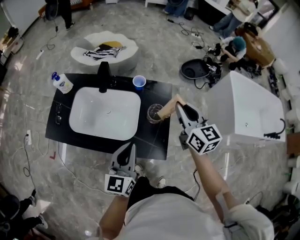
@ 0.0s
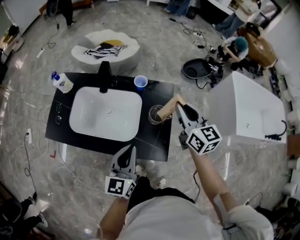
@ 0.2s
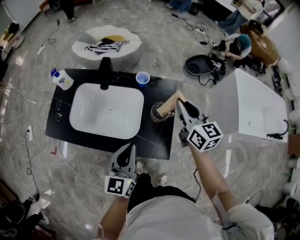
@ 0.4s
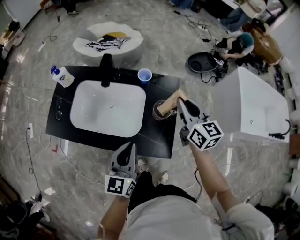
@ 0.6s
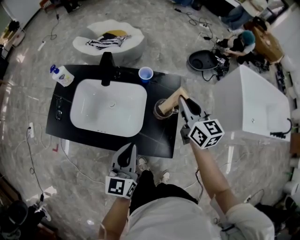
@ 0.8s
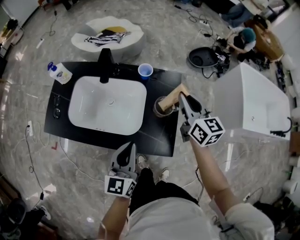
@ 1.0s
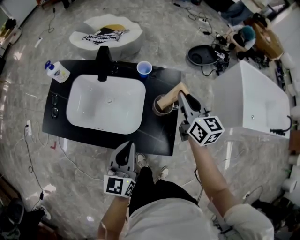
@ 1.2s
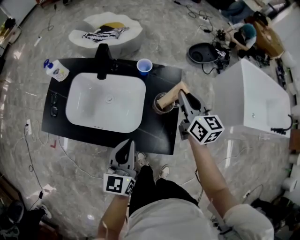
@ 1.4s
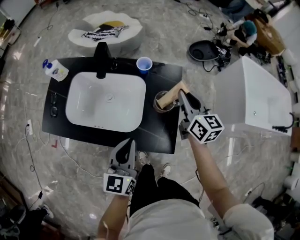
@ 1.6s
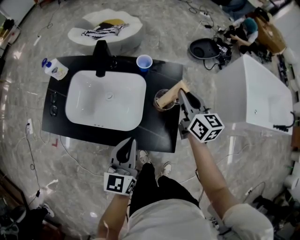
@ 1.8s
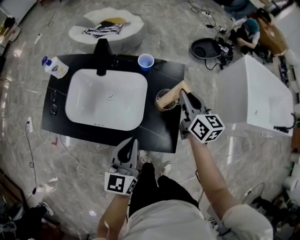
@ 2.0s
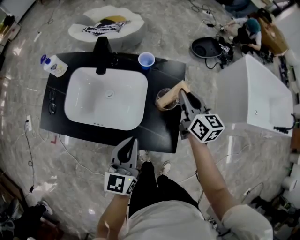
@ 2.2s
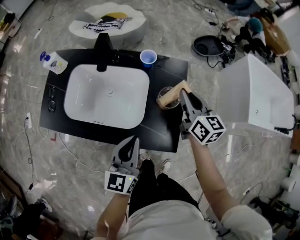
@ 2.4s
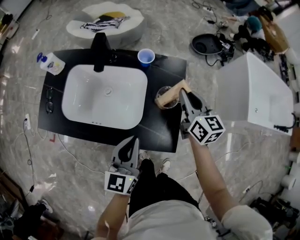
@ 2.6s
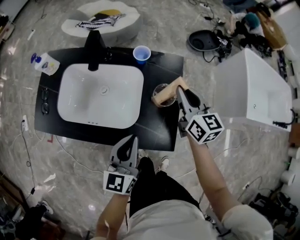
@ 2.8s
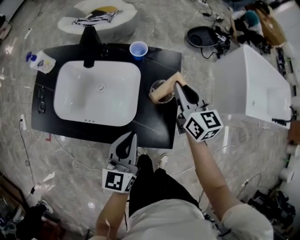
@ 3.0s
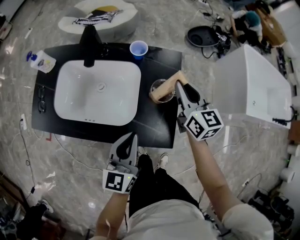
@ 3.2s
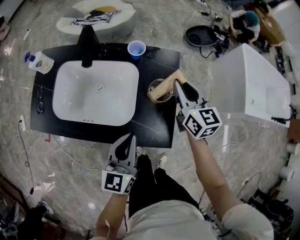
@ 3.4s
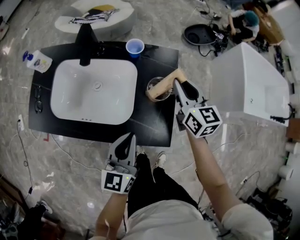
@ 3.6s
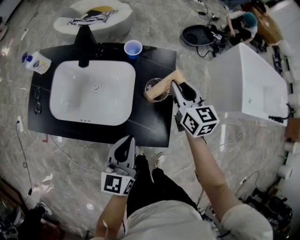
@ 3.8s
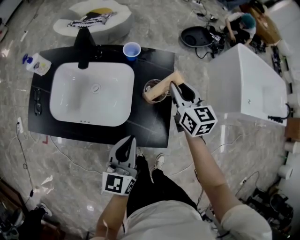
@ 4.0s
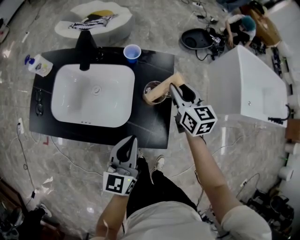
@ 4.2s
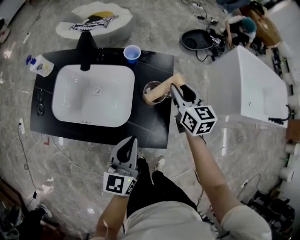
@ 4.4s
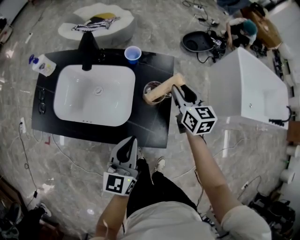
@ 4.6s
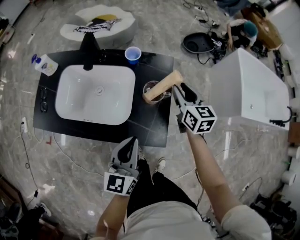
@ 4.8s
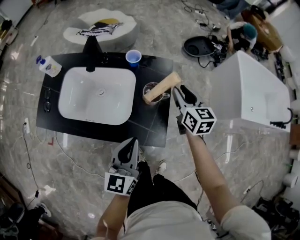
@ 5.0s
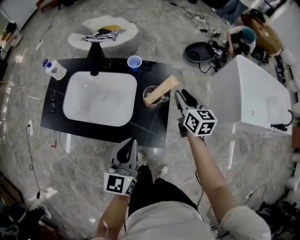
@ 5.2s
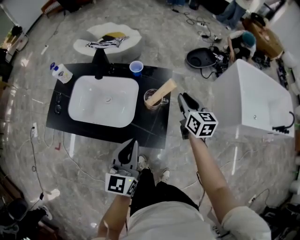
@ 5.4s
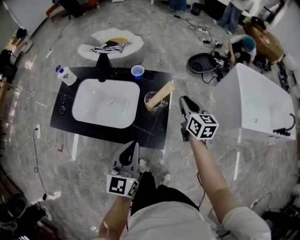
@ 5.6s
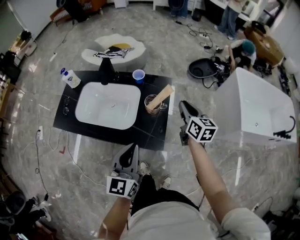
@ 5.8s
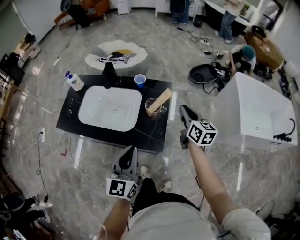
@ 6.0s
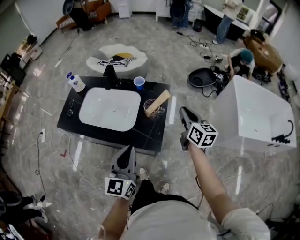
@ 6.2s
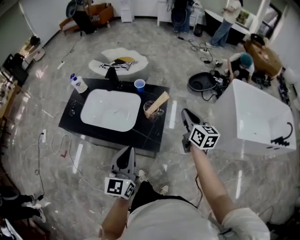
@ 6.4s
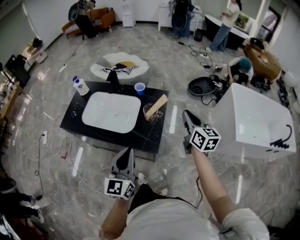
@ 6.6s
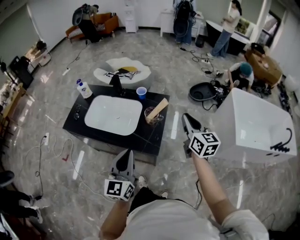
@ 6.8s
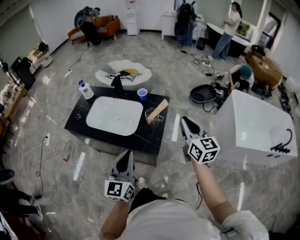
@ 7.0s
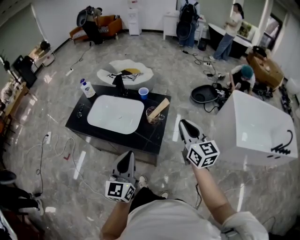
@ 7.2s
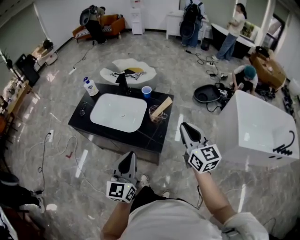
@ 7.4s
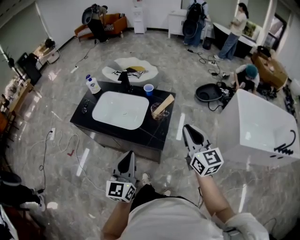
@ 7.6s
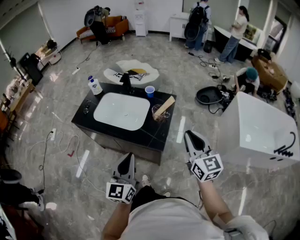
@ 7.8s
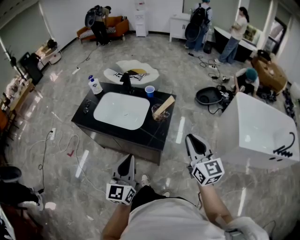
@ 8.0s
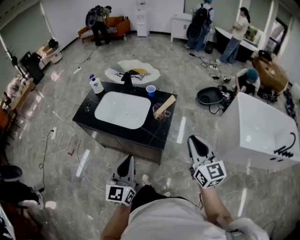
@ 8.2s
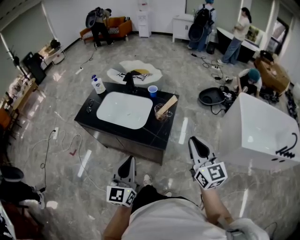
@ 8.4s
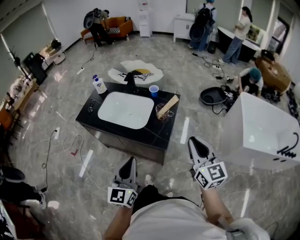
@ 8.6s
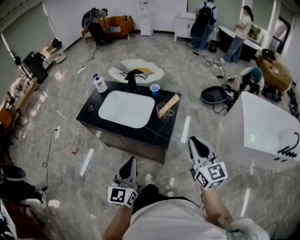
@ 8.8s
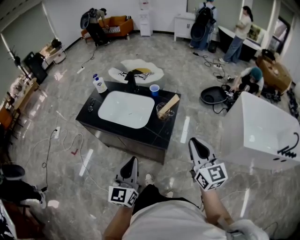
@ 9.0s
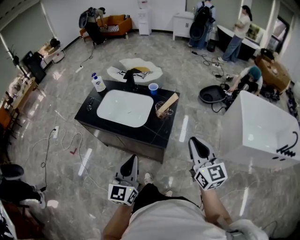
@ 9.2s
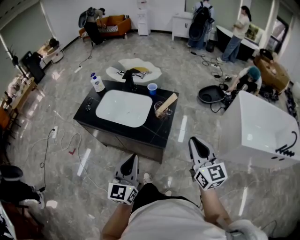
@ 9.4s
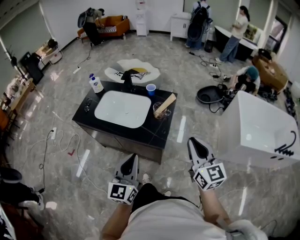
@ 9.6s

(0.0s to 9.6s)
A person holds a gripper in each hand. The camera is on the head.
0.0s - 1.6s: The right gripper shifts some 10 cm downward. Meanwhile the left gripper moves some 5 cm.
1.6s - 3.2s: The grippers stay close to where they were, moving slightly.
3.2s - 4.8s: The right gripper opens up.
4.8s - 6.4s: The right gripper heads upward, backward and to the right, covering approximately 15 cm, and closes; the left gripper heads upward and backward, covering roughly 15 cm.
6.4s - 8.0s: The right gripper moves backward and upward, roughly 20 cm, and swivels roughly 20 degrees. Meanwhile the left gripper moves backward, approximately 10 cm.
8.0s - 9.6s: The grippers move only a little.

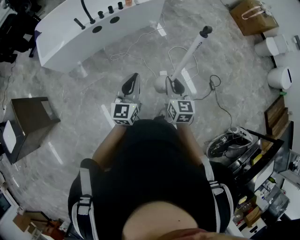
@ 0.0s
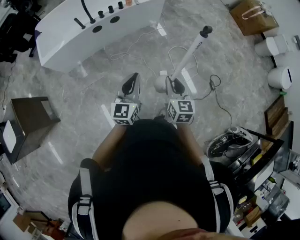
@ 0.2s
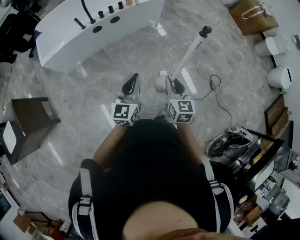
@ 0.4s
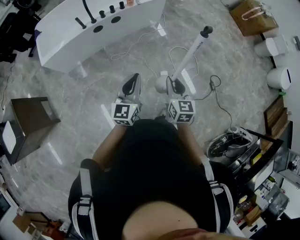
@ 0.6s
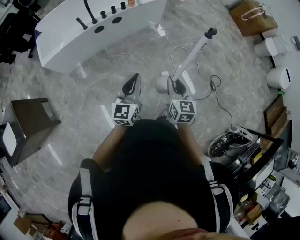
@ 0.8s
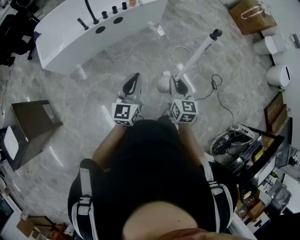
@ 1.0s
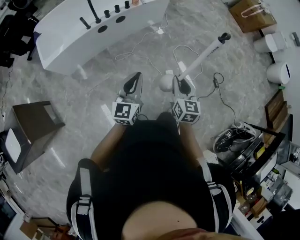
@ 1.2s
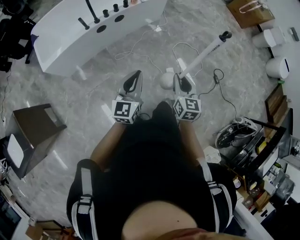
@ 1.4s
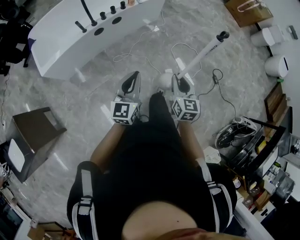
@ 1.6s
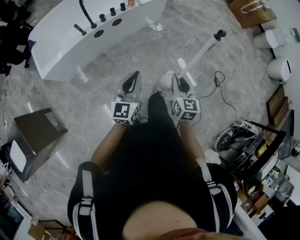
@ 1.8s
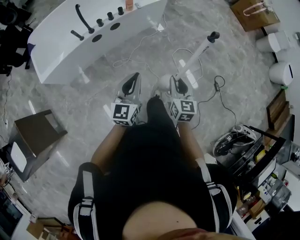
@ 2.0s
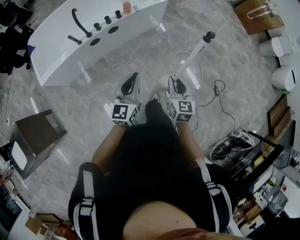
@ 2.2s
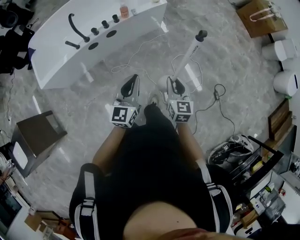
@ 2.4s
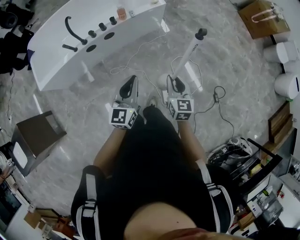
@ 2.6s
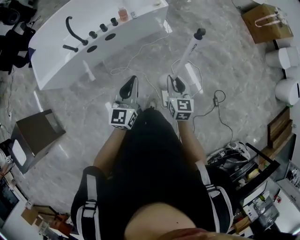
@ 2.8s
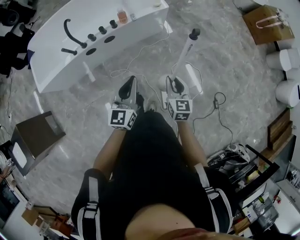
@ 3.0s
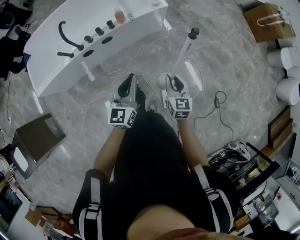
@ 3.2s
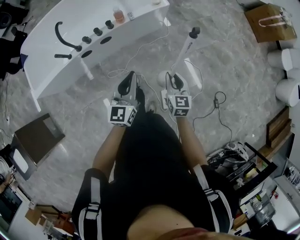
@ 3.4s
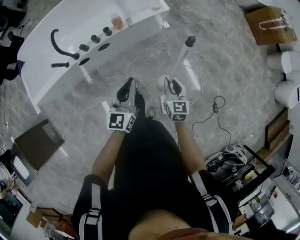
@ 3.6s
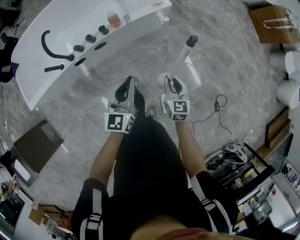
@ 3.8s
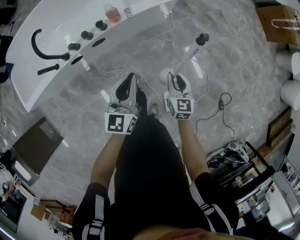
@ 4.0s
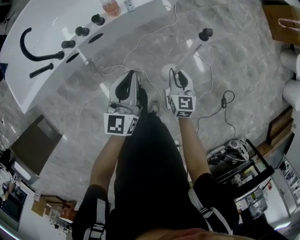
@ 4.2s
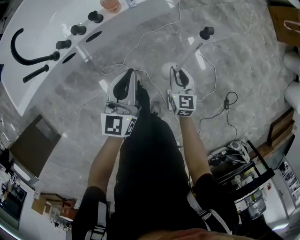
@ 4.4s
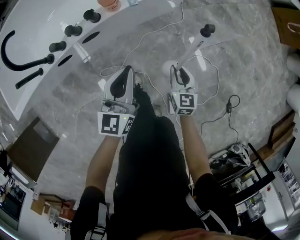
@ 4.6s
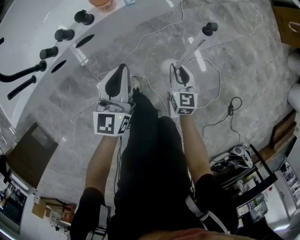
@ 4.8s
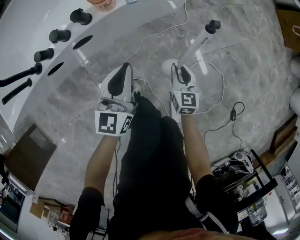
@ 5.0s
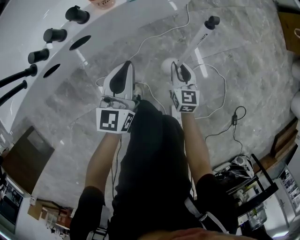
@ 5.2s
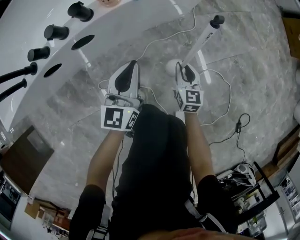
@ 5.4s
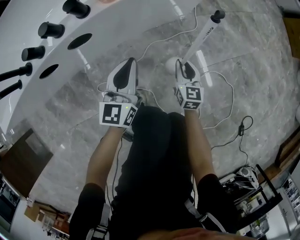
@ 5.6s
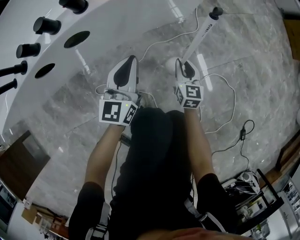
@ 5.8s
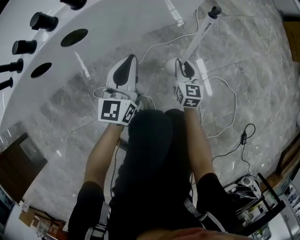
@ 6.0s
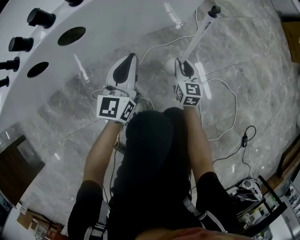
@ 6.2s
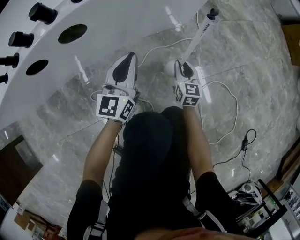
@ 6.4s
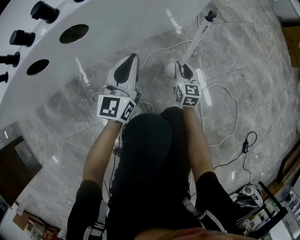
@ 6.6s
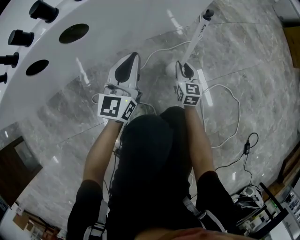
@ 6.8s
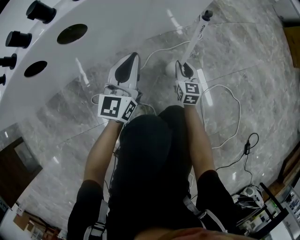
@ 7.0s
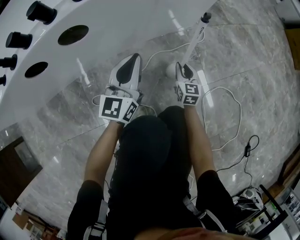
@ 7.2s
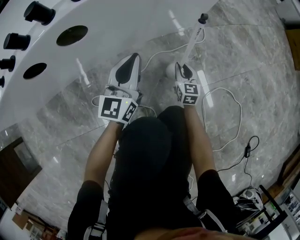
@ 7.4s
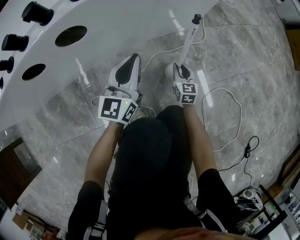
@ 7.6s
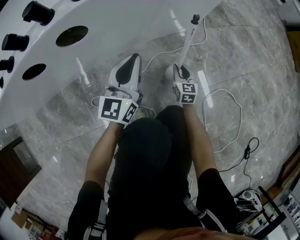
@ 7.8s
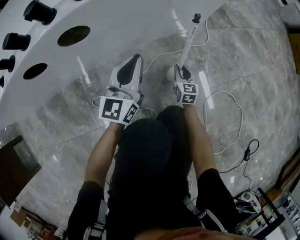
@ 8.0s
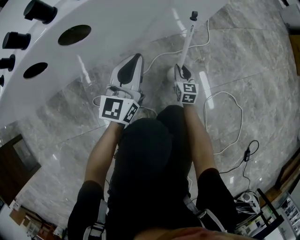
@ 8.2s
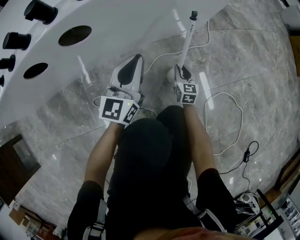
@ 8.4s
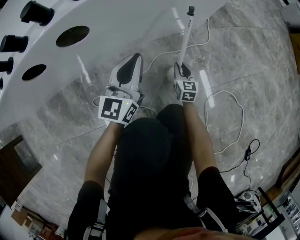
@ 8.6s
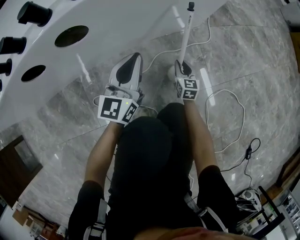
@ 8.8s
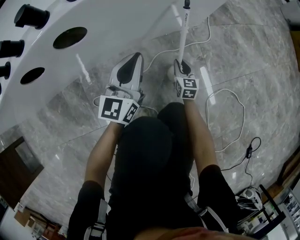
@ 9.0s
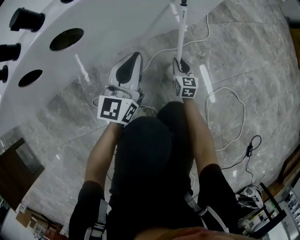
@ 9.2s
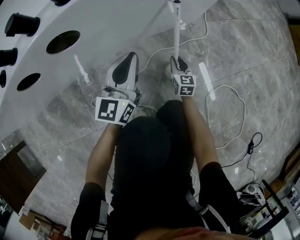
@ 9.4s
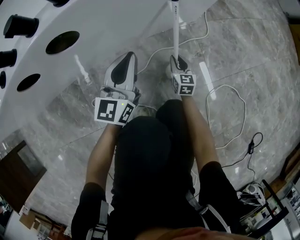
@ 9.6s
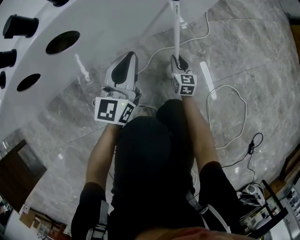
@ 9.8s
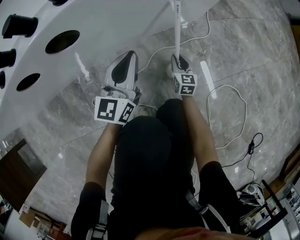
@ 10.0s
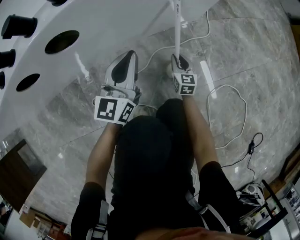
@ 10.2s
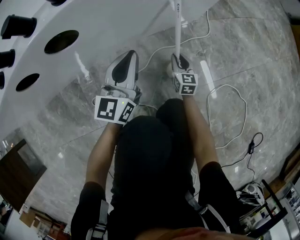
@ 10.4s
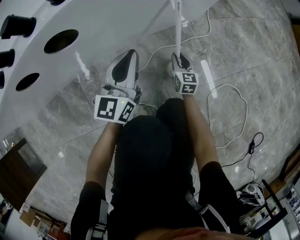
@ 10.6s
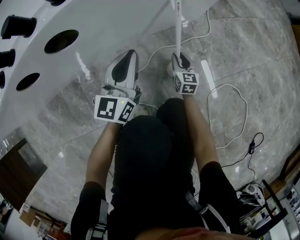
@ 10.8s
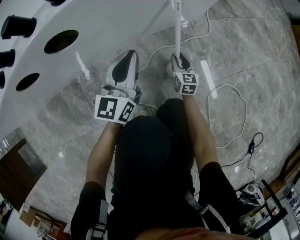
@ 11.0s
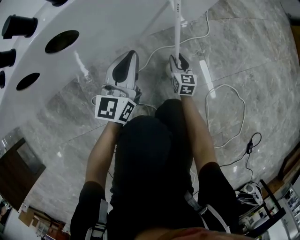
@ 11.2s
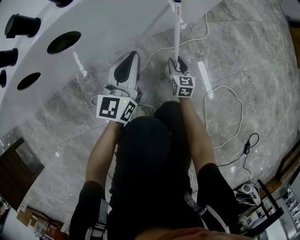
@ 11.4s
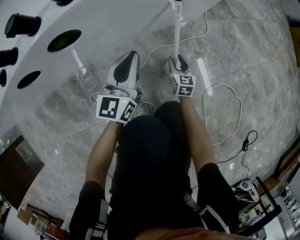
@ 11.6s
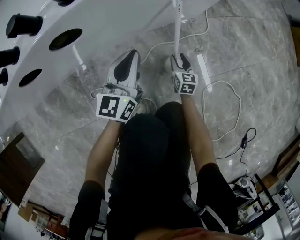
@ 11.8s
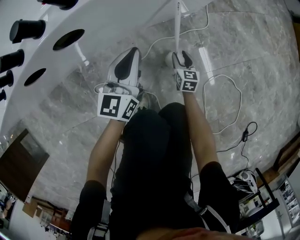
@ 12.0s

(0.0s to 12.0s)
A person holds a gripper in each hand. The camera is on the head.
0.0s - 1.6s: The right gripper travels to the left by approximately 10 cm, while the left gripper moves to the left and forward, about 15 cm.
1.6s - 3.0s: The left gripper is displaced forward and to the right by roughly 30 cm; the right gripper goes some 30 cm forward.
3.0s - 4.4s: The left gripper heads forward and downward, covering approximately 35 cm; the right gripper moves downward and forward, some 40 cm.
4.4s - 6.0s: Both grippers move downward, about 30 cm.
6.0s - 7.6s: The right gripper shifts roughly 15 cm downward. The left gripper travels downward by roughly 5 cm.
7.6s - 10.4s: The grippers stay close to where they were, moving slightly.
10.4s - 12.0s: The right gripper opens its fingers.

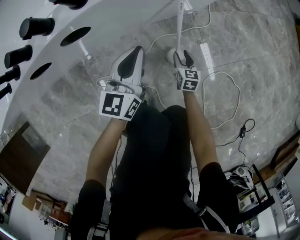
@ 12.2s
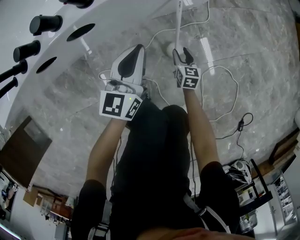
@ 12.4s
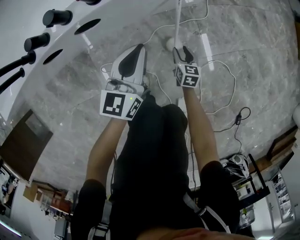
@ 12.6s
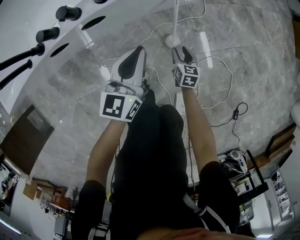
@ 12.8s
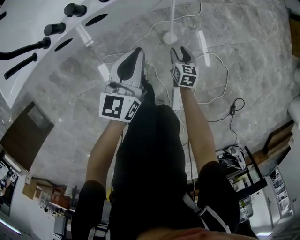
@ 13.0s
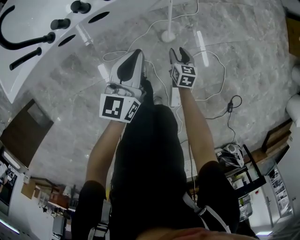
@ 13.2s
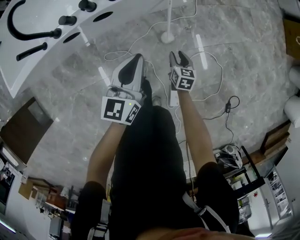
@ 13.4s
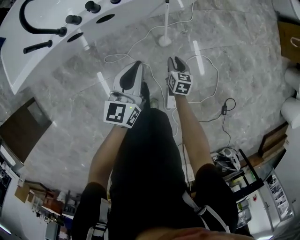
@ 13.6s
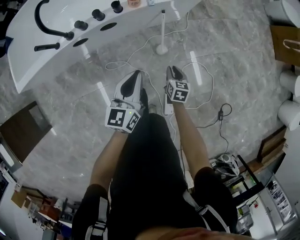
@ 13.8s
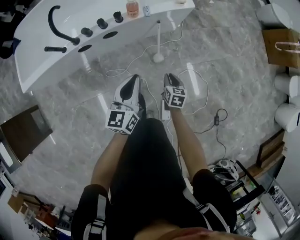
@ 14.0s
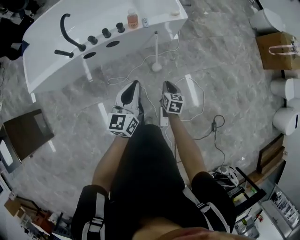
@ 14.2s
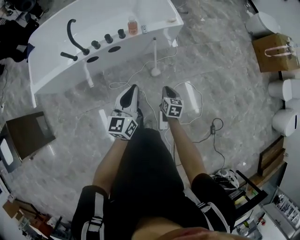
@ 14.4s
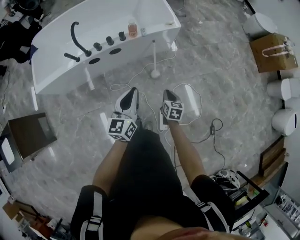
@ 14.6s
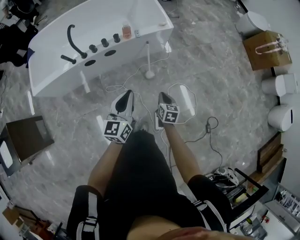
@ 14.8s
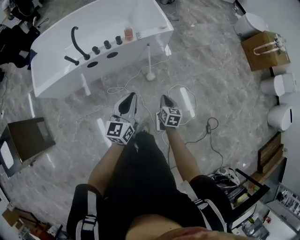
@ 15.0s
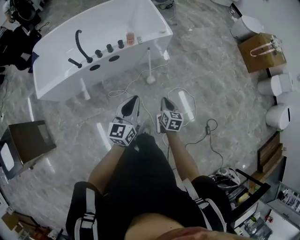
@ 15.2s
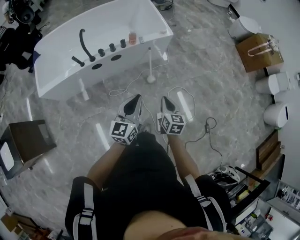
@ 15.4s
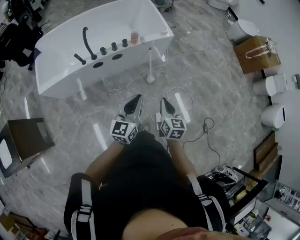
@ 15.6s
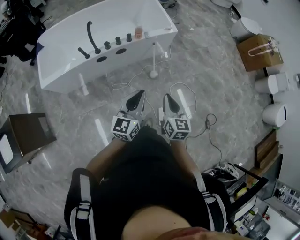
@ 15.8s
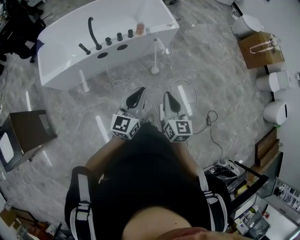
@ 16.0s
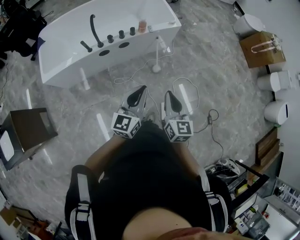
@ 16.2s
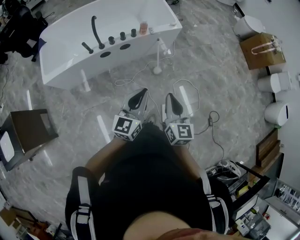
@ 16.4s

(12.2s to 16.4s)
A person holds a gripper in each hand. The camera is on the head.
12.2s - 13.6s: Both grippers travel together upward and backward, some 35 cm.
13.6s - 15.0s: The two grippers go some 35 cm upward and backward. The right gripper closes up.
15.0s - 16.4s: The left gripper shifts approximately 15 cm backward, upward and to the left. The right gripper goes roughly 30 cm upward, backward and to the left, and rotates some 30 degrees.
